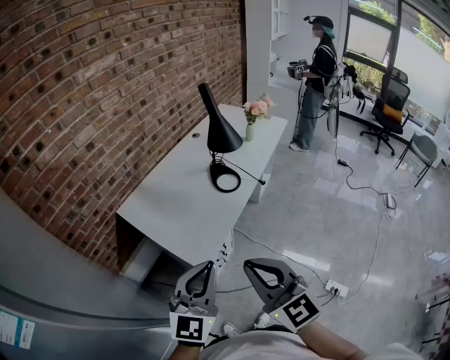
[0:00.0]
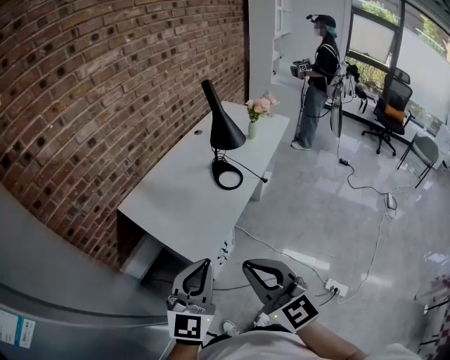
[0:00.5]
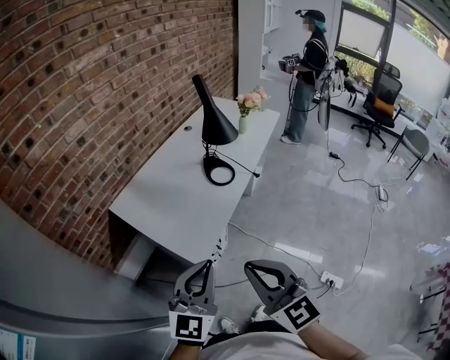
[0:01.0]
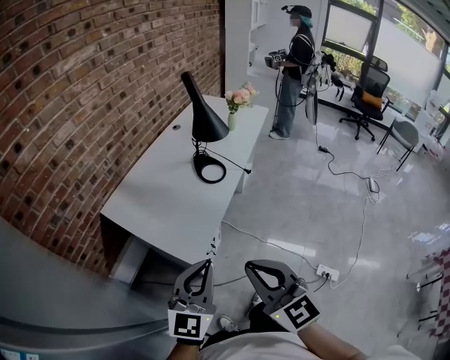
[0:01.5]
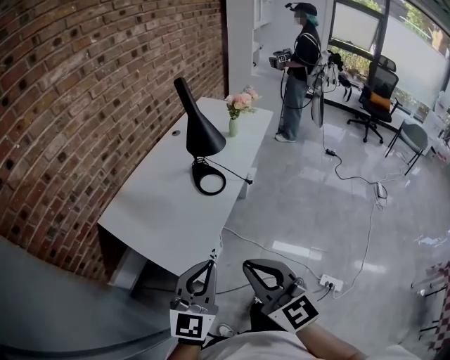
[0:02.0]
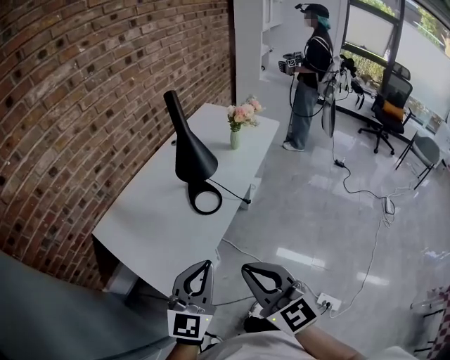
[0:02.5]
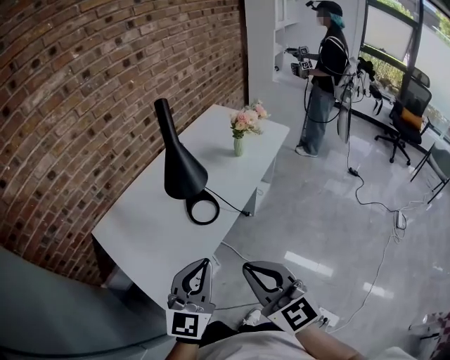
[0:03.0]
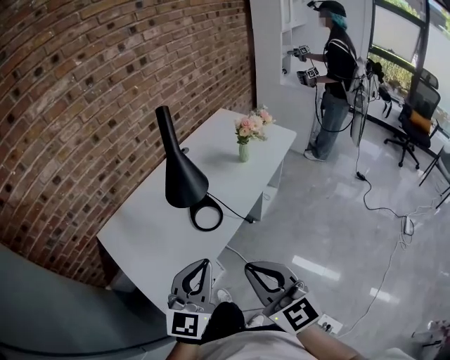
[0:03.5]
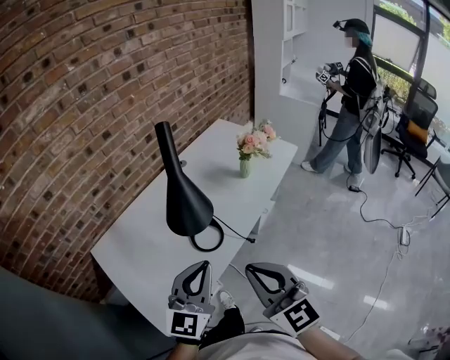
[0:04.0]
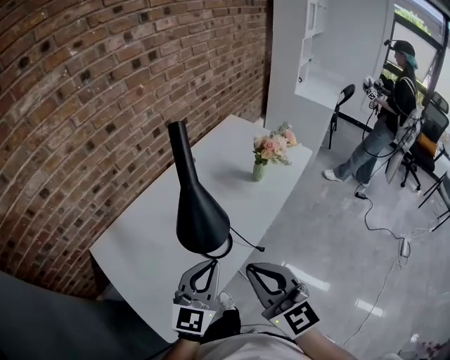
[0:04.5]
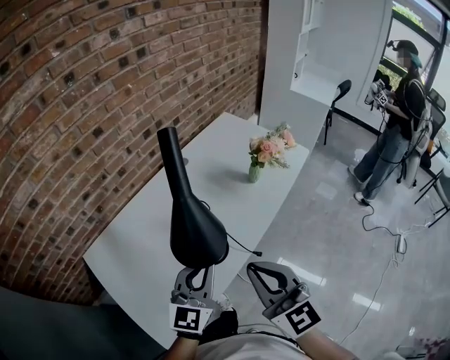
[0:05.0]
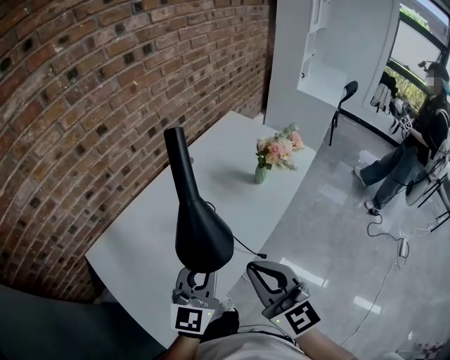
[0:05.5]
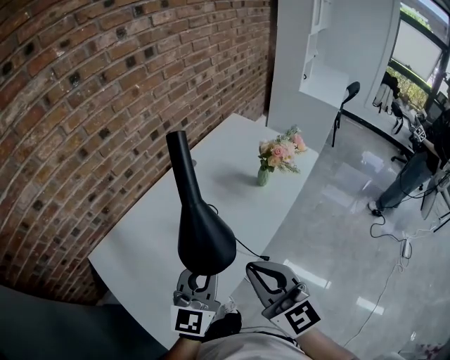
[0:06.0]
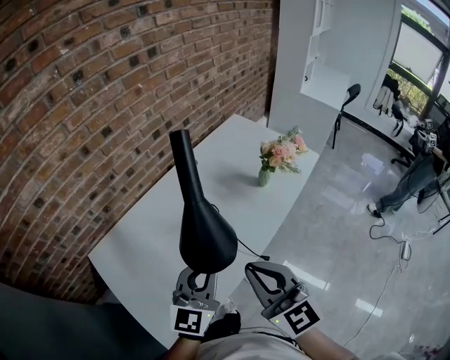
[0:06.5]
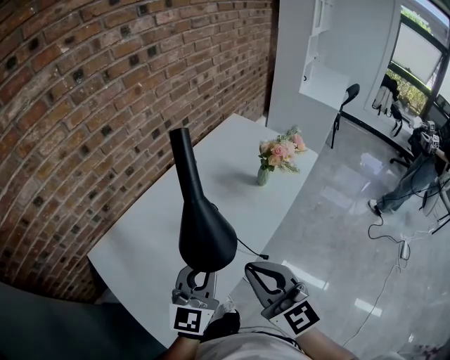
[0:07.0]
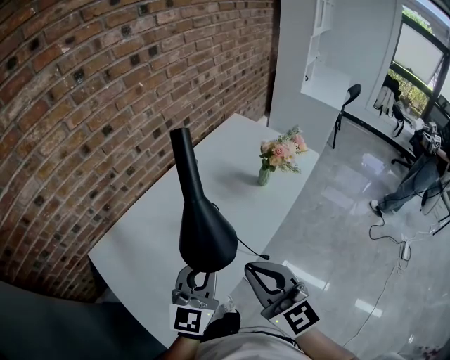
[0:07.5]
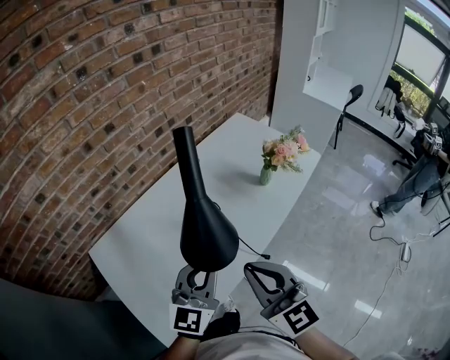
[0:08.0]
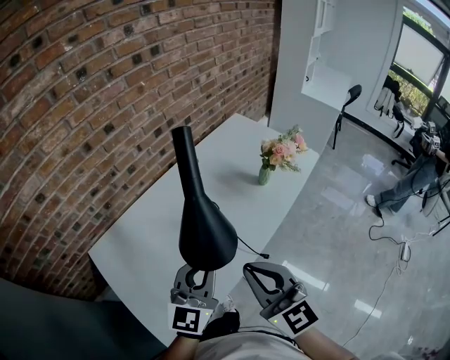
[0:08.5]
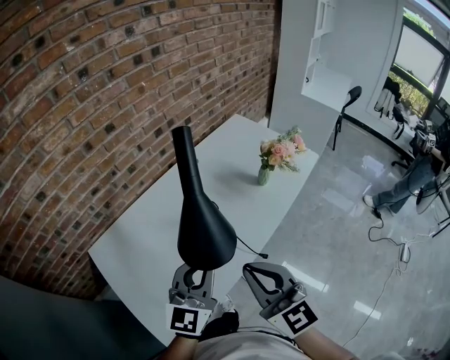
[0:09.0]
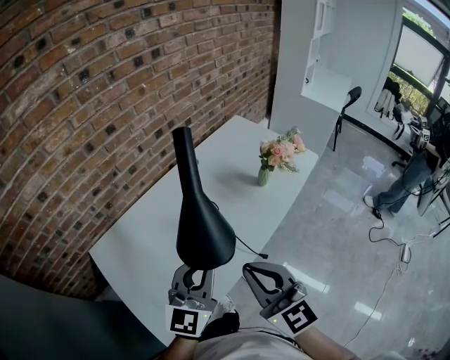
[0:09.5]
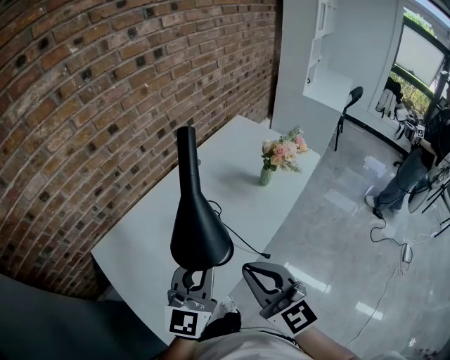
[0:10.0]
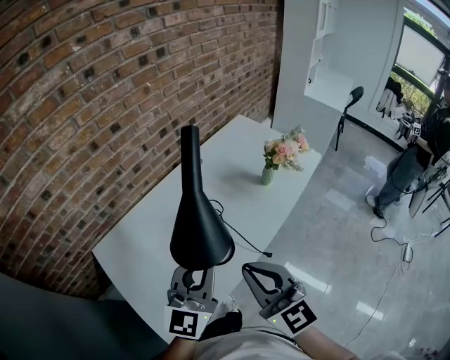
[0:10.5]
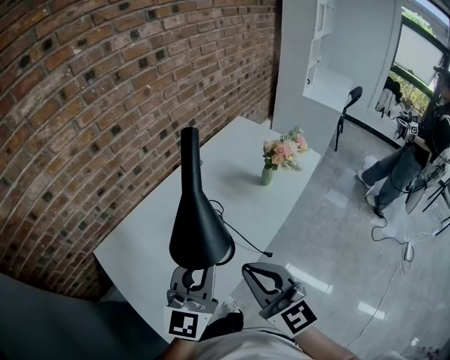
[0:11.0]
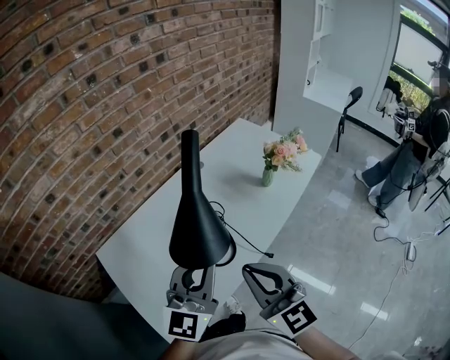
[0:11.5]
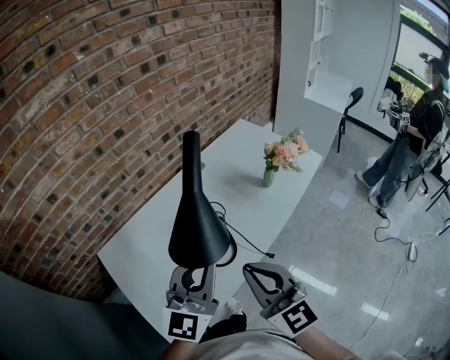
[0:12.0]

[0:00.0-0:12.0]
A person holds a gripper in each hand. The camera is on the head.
0:00.0 to 0:02.0: The two grippers go roughly 5 cm forward.
0:02.0 to 0:04.0: Both grippers travel together forward and to the right, some 30 cm.
0:04.0 to 0:06.0: Both grippers travel together forward, roughly 15 cm.
0:06.0 to 0:08.0: Neither gripper changes place.
0:08.0 to 0:10.0: There are only small adjustments of the grippers.
0:10.0 to 0:12.0: The grippers make only small movements.

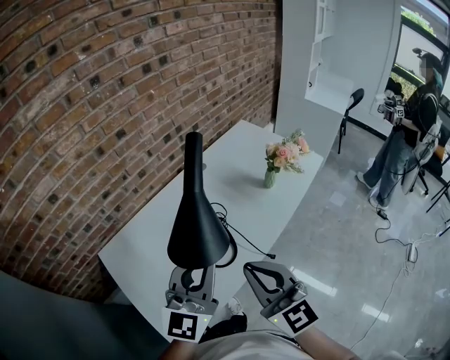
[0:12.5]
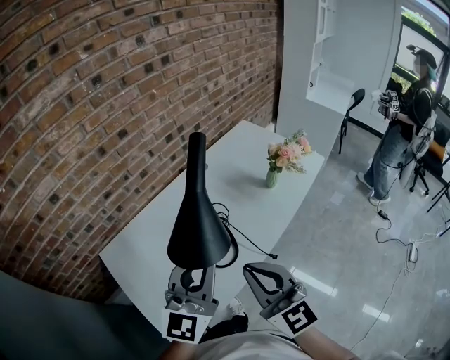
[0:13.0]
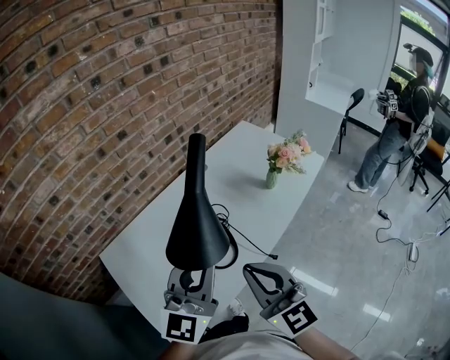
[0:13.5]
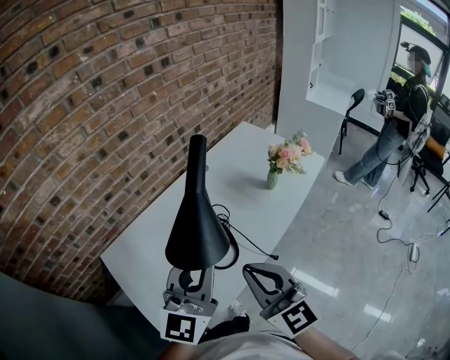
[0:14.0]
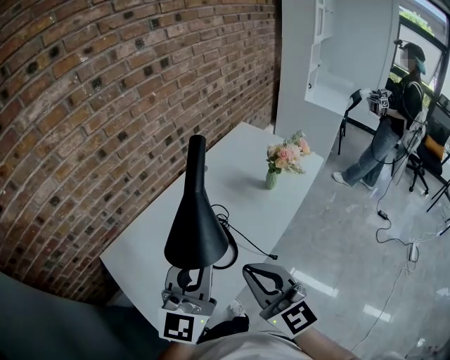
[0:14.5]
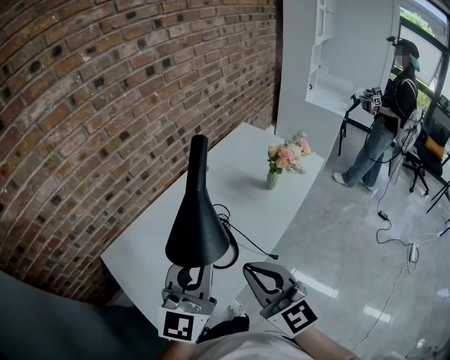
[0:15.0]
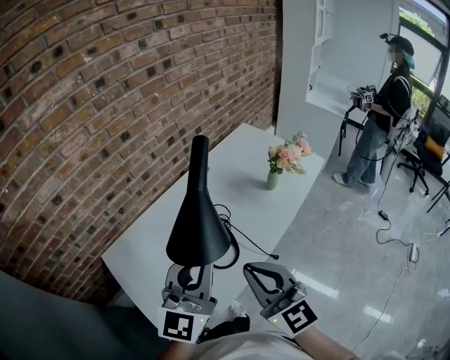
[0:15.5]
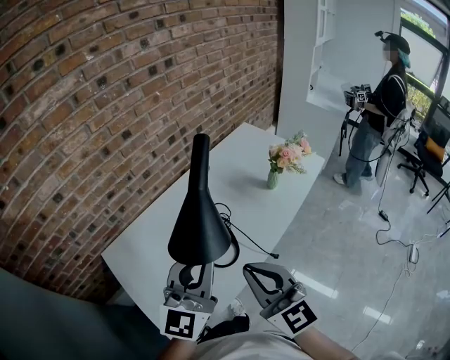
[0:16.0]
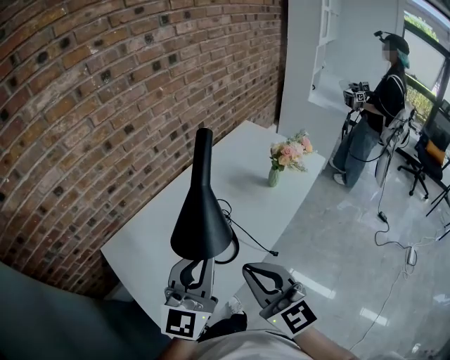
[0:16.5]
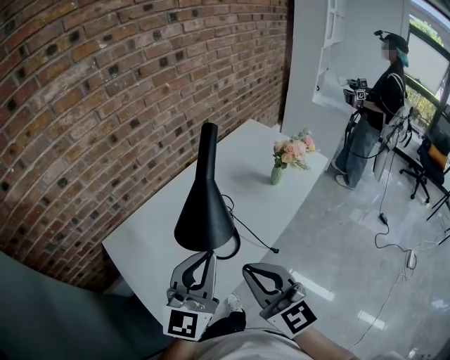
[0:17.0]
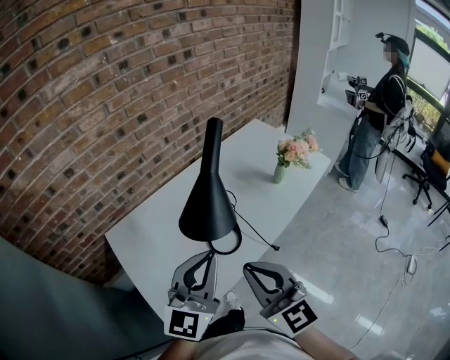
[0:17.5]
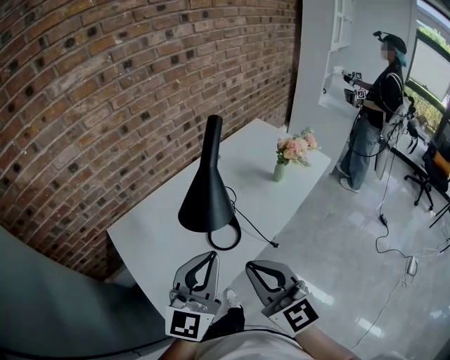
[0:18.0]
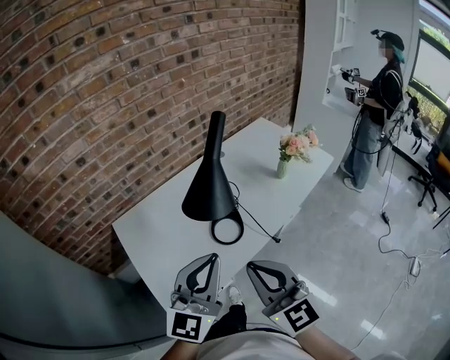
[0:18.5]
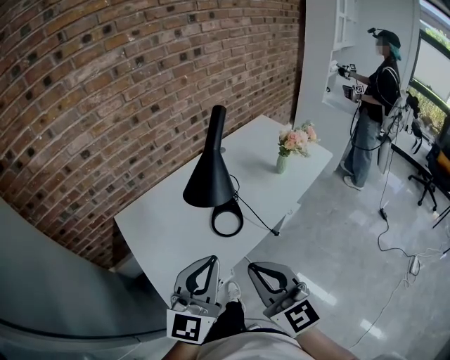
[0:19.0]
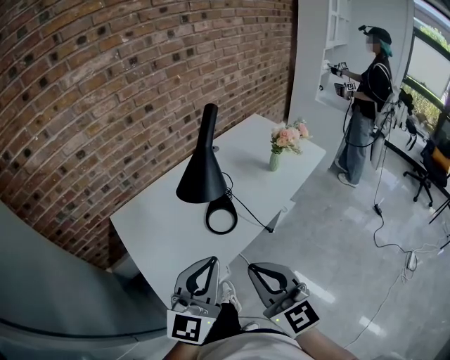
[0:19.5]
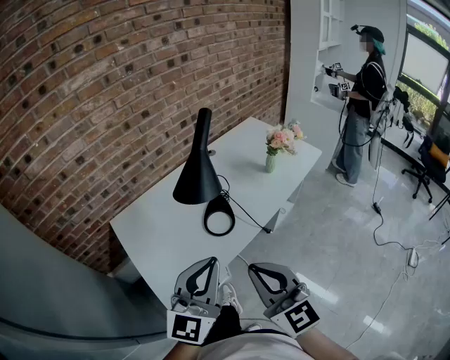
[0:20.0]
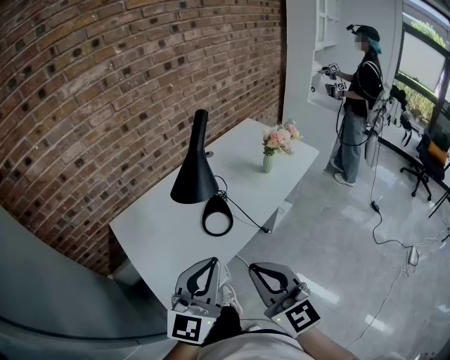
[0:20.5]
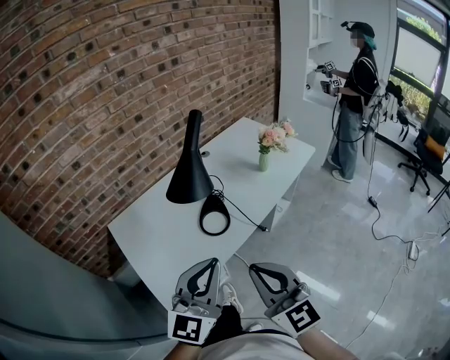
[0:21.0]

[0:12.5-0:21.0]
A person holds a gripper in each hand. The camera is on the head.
0:12.5 to 0:16.5: The grippers make only small movements.
0:16.5 to 0:19.0: The two grippers go approximately 15 cm backward.
0:19.0 to 0:21.0: The right gripper shifts by roughly 5 cm; the left gripper shifts by approximately 5 cm.

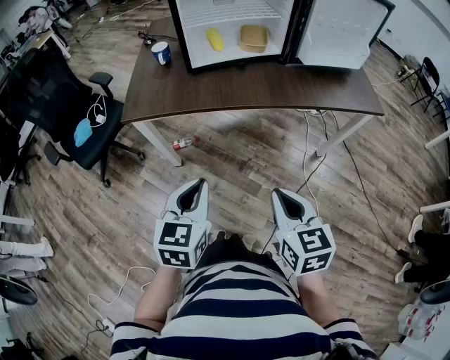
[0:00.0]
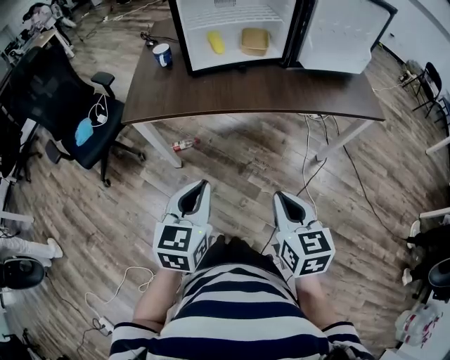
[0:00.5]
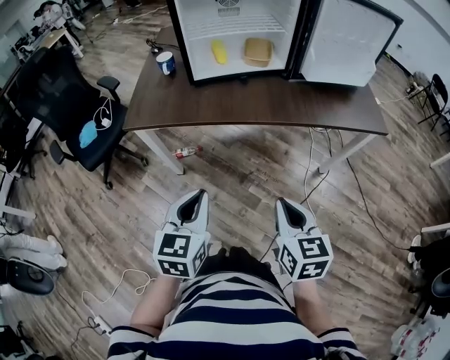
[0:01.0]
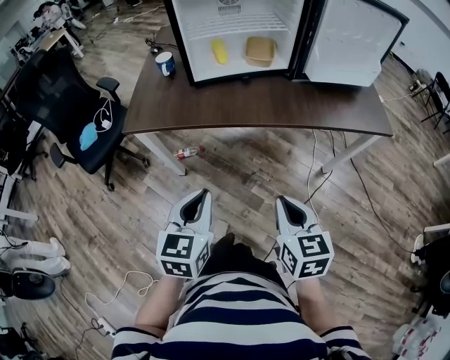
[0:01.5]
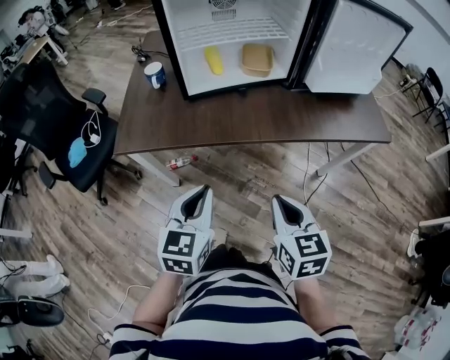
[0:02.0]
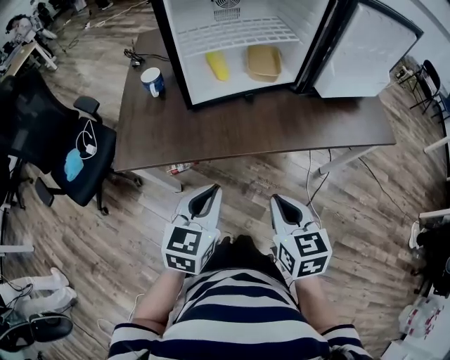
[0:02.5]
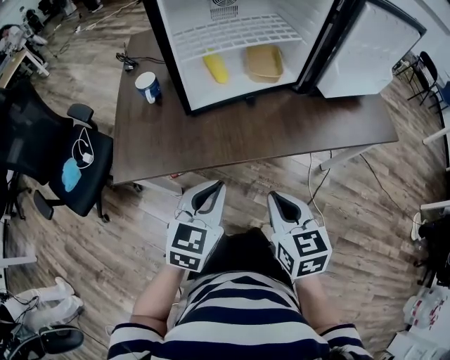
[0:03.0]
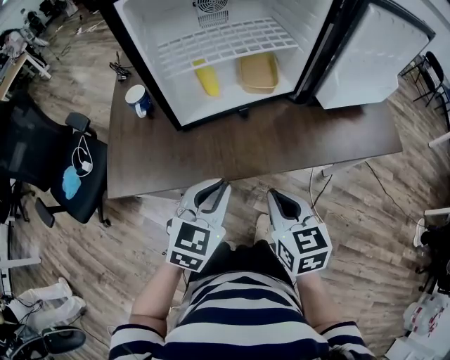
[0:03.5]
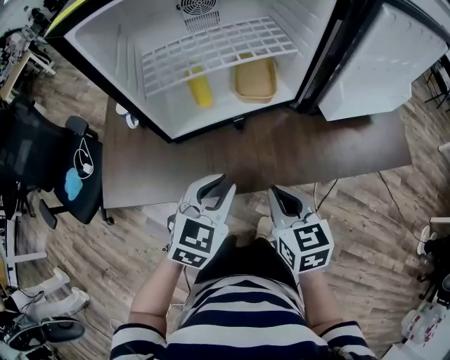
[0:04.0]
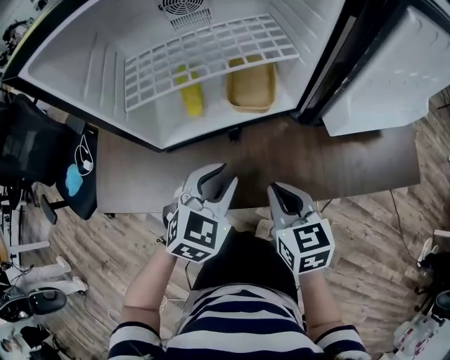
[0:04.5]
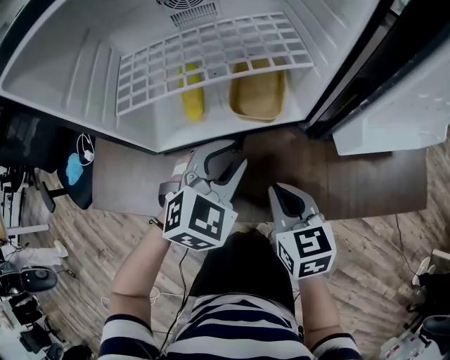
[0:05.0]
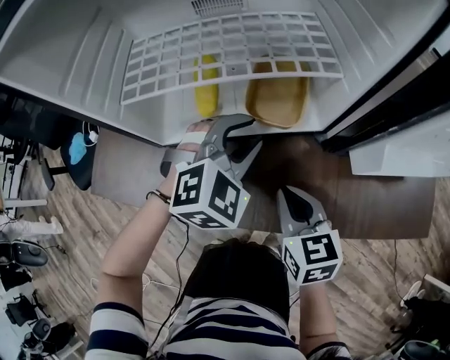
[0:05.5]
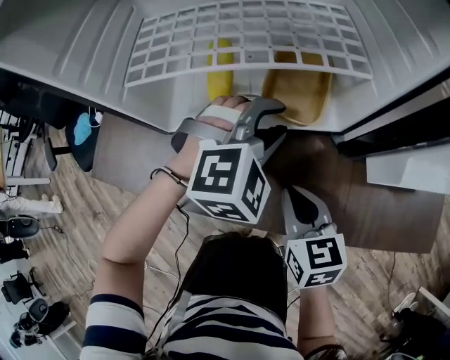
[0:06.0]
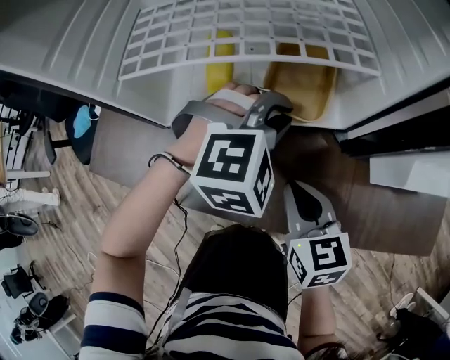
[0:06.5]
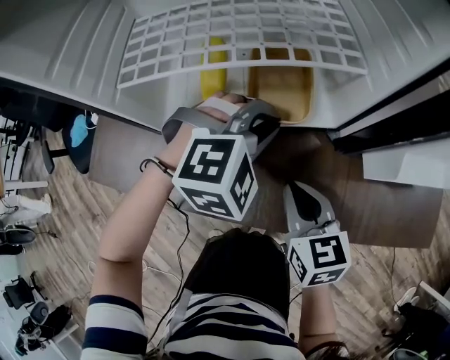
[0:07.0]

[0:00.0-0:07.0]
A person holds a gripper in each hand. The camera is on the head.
0:00.0 to 0:02.0: Both grippers travel together forward, approximately 15 cm.
0:02.0 to 0:03.5: The grippers both shift forward by some 15 cm. The left gripper changes its angle by approximately 20 degrees.
0:03.5 to 0:05.0: The left gripper heads forward and to the right, covering roughly 25 cm, and swivels roughly 20 degrees; the right gripper heads forward, covering approximately 20 cm.
0:05.0 to 0:07.0: The left gripper shifts roughly 5 cm forward, and swivels about 30 degrees.
